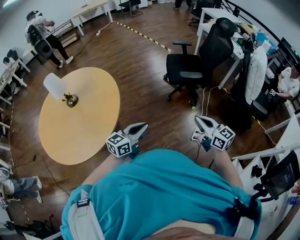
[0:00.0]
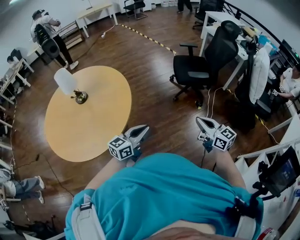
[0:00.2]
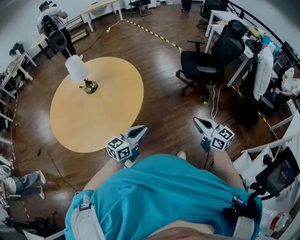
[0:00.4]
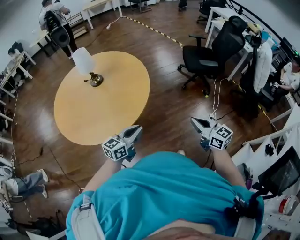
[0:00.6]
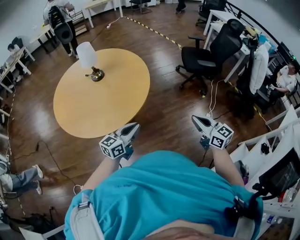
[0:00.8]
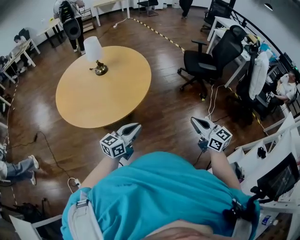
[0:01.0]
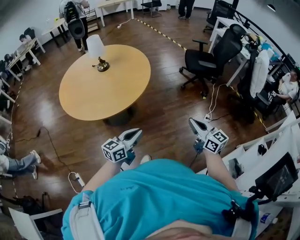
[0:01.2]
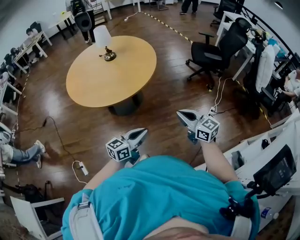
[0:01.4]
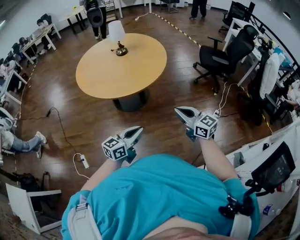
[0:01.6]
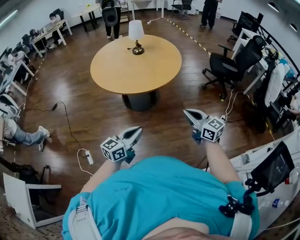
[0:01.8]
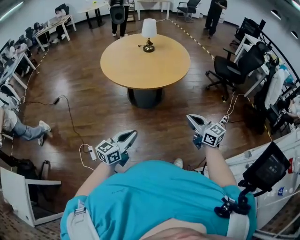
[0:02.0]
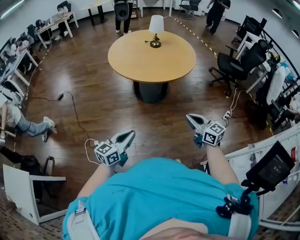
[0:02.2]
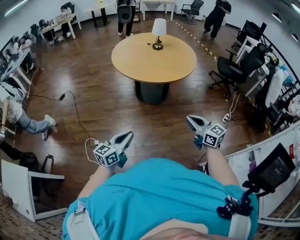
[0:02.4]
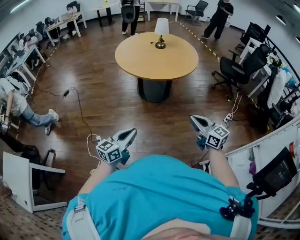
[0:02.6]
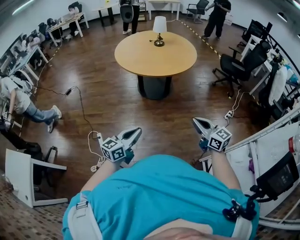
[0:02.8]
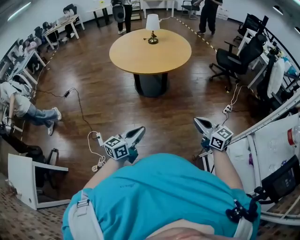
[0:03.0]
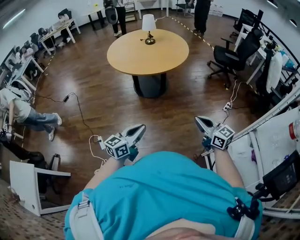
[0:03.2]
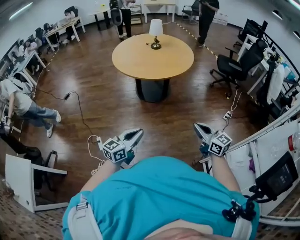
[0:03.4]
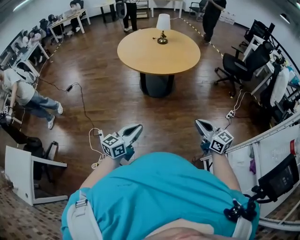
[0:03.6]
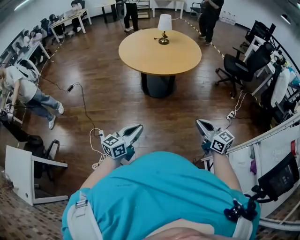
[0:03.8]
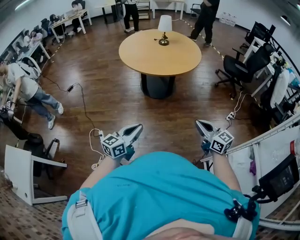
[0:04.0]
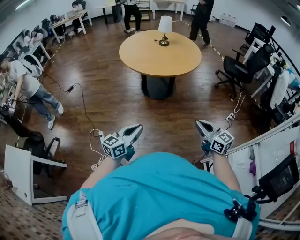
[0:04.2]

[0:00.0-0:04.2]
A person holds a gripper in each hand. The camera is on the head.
0:00.0 to 0:01.4: The two grippers travel together, backward and to the left, about 50 cm.
0:01.4 to 0:02.8: The grippers both shift backward and to the left by some 40 cm.

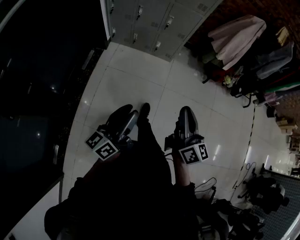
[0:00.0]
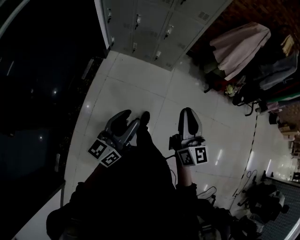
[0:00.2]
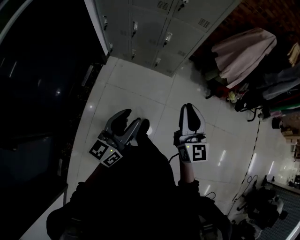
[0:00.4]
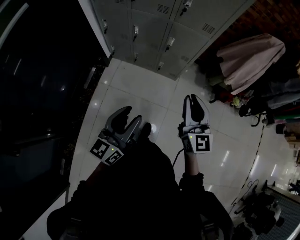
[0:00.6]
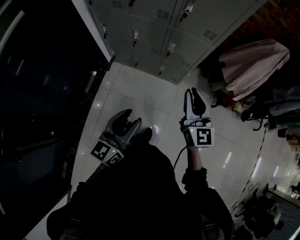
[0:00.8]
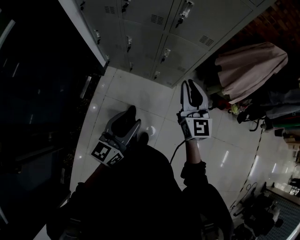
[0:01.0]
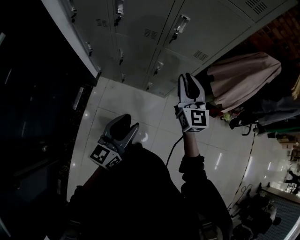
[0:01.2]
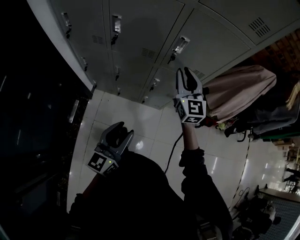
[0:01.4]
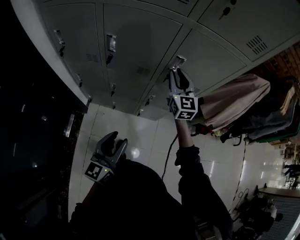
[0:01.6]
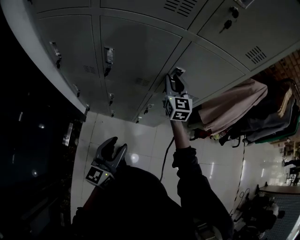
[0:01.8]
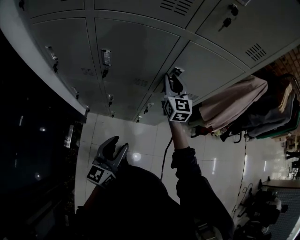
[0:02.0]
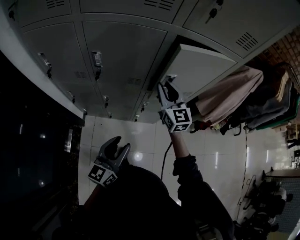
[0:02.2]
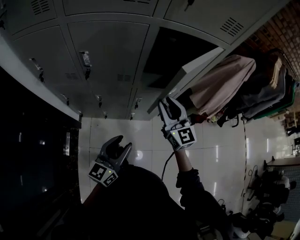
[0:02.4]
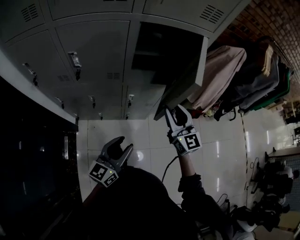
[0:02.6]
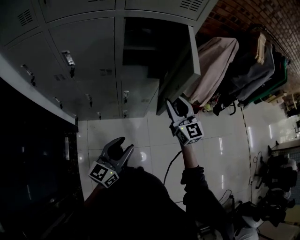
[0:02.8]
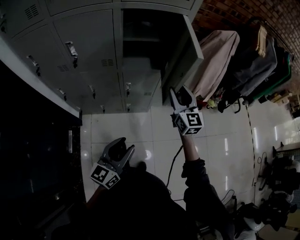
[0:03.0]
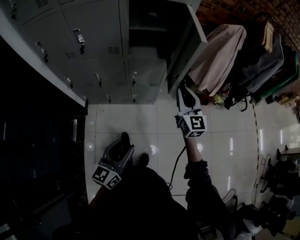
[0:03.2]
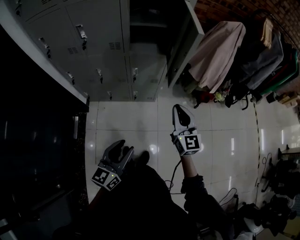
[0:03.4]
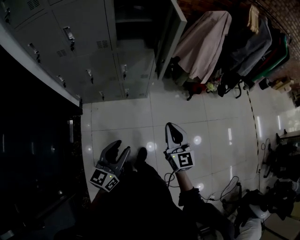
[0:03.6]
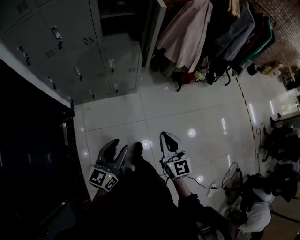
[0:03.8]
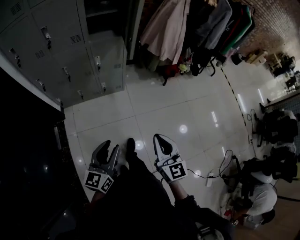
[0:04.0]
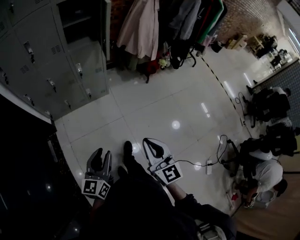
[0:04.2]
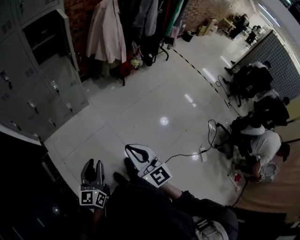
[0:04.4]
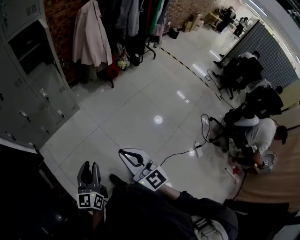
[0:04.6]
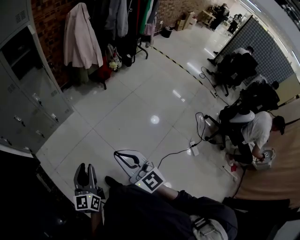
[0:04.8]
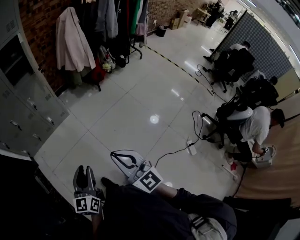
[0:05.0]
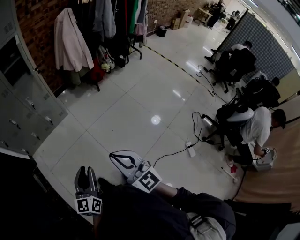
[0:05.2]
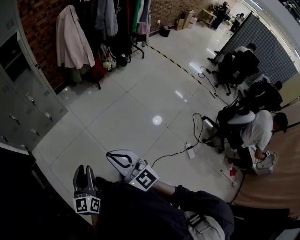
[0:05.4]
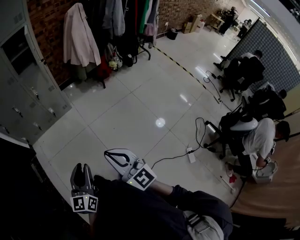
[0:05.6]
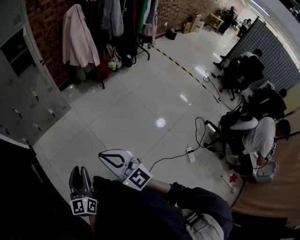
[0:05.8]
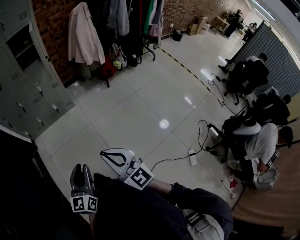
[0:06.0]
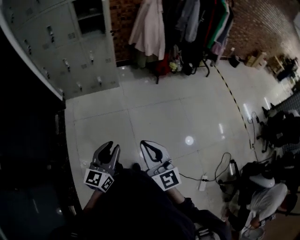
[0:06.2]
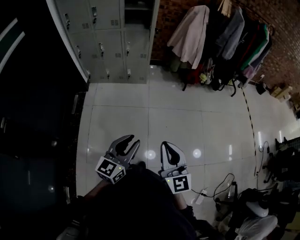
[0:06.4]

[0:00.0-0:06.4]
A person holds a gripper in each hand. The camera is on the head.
0:00.0 to 0:01.6: Both grippers are carried forward, approximately 70 cm. The left gripper turns by approximately 20 degrees; the right gripper rolls counterclockwise, seen from behind, by about 40 degrees.
0:01.6 to 0:03.2: The right gripper is displaced to the right and backward by roughly 35 cm, while the left gripper is displaced backward and to the right by about 20 cm.
0:03.2 to 0:04.8: The left gripper shifts about 35 cm backward and to the right. The right gripper moves backward, roughly 60 cm.
0:04.8 to 0:06.4: Both grippers travel together to the right and backward, about 15 cm.

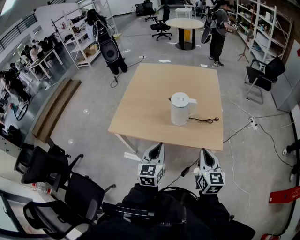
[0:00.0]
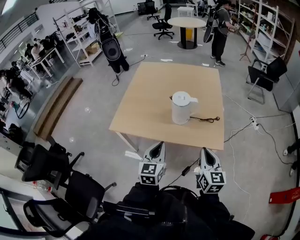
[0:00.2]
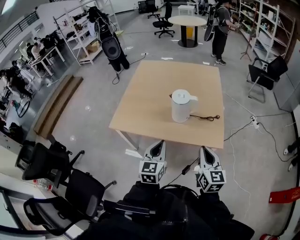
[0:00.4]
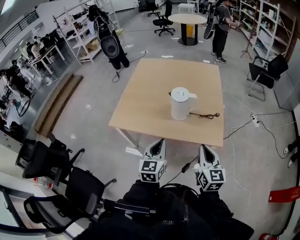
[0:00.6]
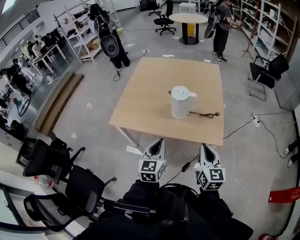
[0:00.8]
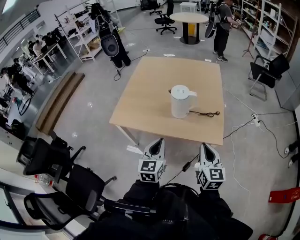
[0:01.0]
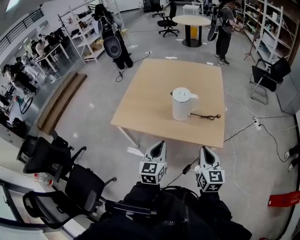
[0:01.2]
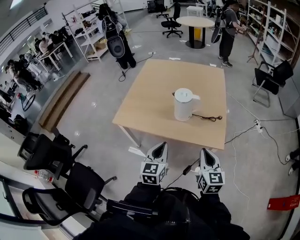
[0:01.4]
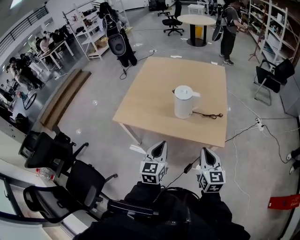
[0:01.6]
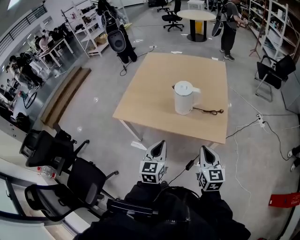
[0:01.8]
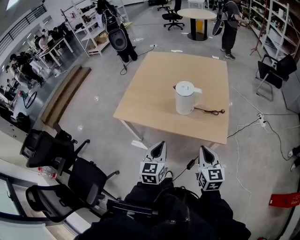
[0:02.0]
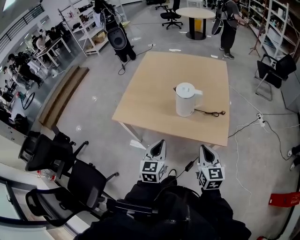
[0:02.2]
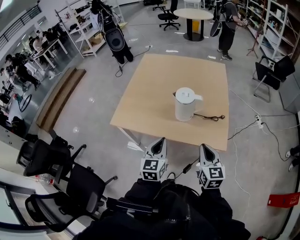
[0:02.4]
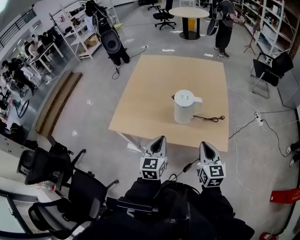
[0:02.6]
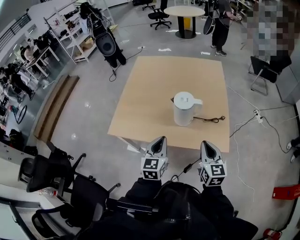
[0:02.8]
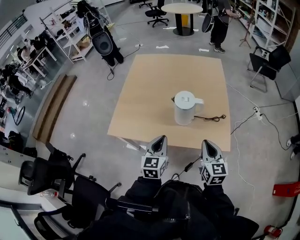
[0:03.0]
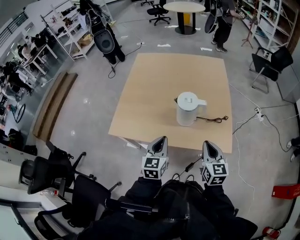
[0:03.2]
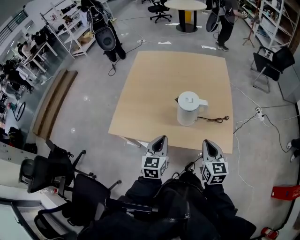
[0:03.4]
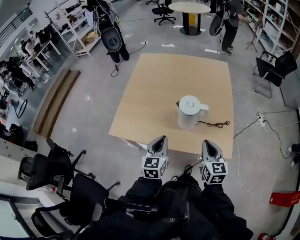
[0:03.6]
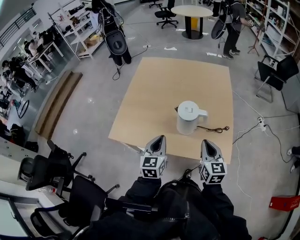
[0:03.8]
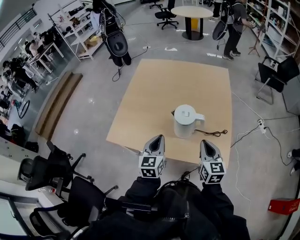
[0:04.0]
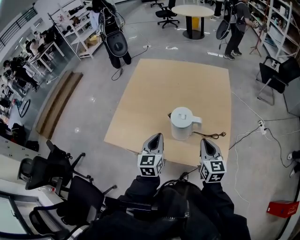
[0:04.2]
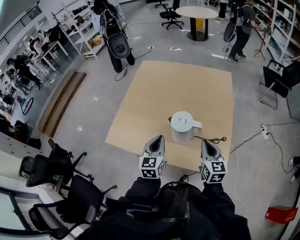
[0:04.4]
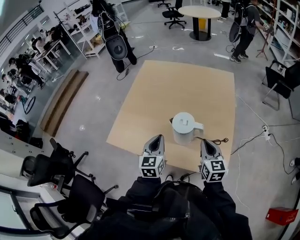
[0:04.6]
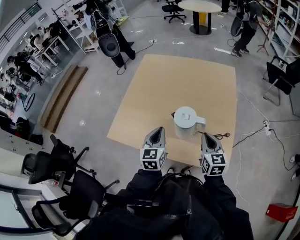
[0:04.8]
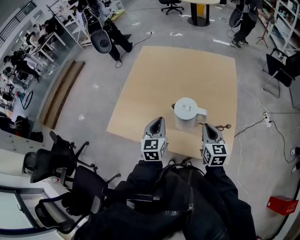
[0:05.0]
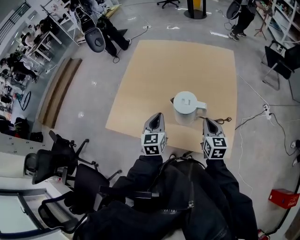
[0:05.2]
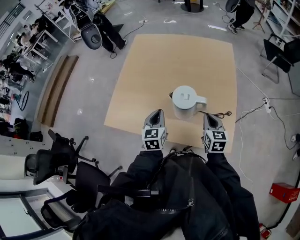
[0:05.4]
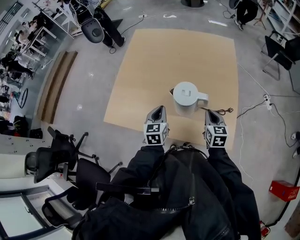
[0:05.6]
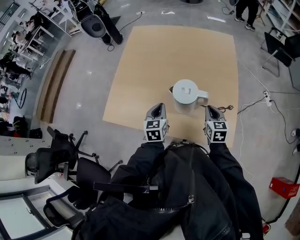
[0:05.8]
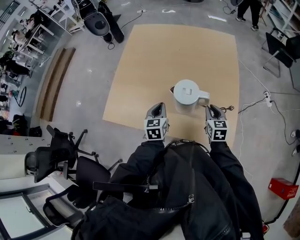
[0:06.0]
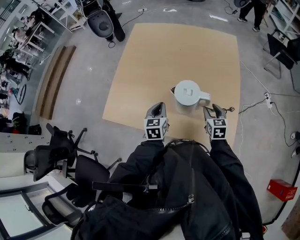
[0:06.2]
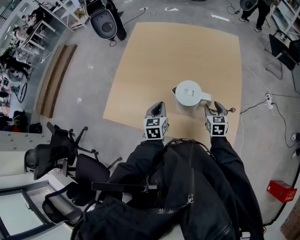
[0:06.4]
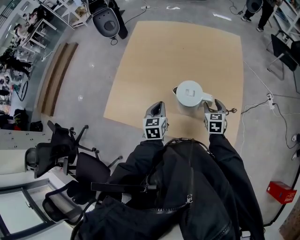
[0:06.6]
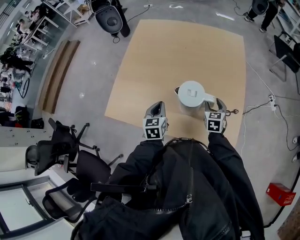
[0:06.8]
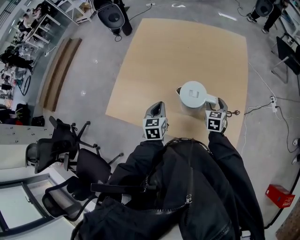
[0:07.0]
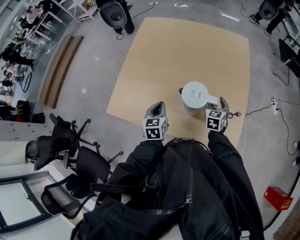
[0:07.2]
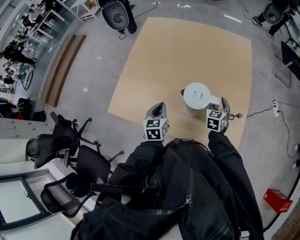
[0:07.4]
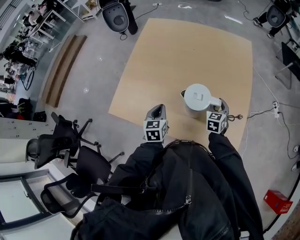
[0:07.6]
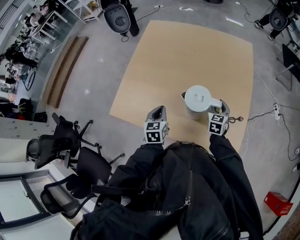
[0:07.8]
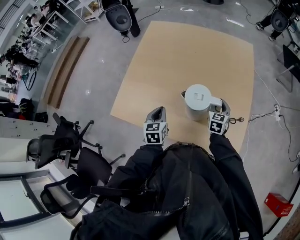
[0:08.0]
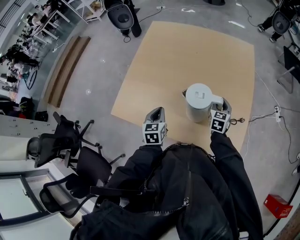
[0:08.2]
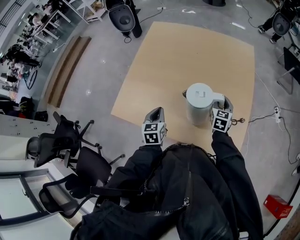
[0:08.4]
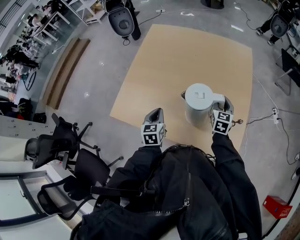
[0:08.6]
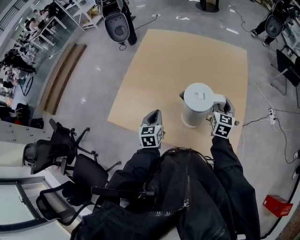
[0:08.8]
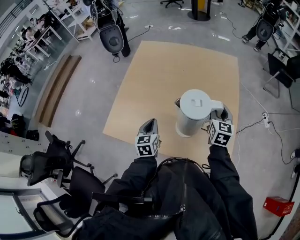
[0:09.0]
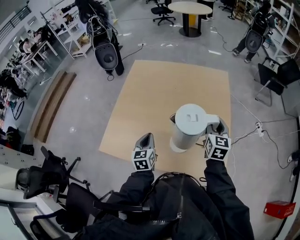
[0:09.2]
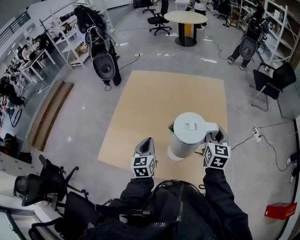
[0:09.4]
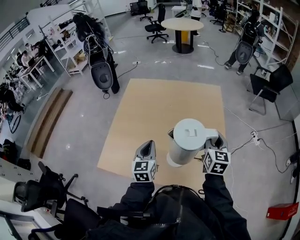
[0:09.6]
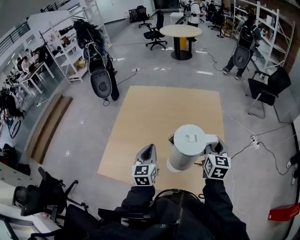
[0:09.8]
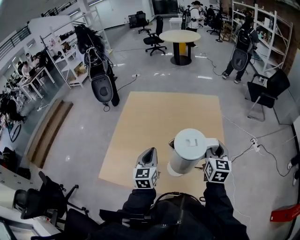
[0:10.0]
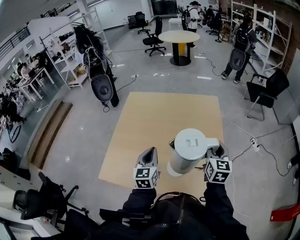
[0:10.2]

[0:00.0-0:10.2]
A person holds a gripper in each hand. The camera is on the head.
0:00.0 to 0:01.4: The grippers stay close to where they were, moving slightly.
0:01.4 to 0:03.0: The two grippers go approximately 15 cm forward.
0:03.0 to 0:04.4: The two grippers go some 15 cm forward.
0:04.4 to 0:05.8: Both grippers travel together downward and forward, some 15 cm.
0:05.8 to 0:07.2: The right gripper travels forward and downward by roughly 10 cm, and opens its fingers.
0:07.2 to 0:08.8: The right gripper is displaced upward by approximately 10 cm.
0:08.8 to 0:10.2: The left gripper heads upward and to the right, covering approximately 15 cm, and swivels about 20 degrees. Meanwhile the right gripper is displaced upward by approximately 15 cm.

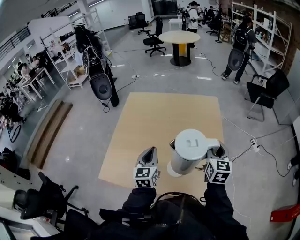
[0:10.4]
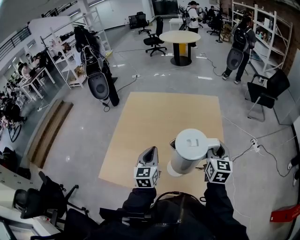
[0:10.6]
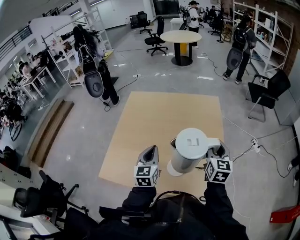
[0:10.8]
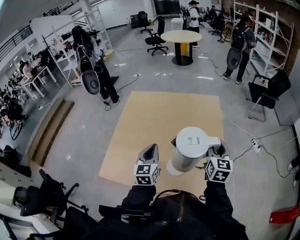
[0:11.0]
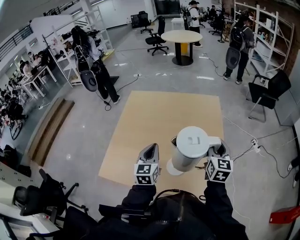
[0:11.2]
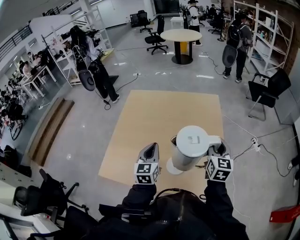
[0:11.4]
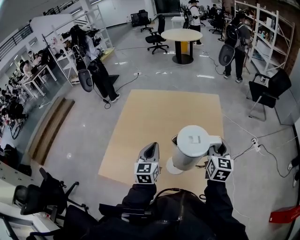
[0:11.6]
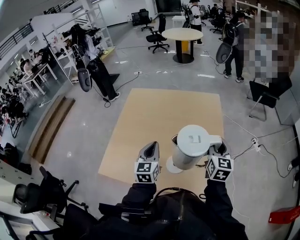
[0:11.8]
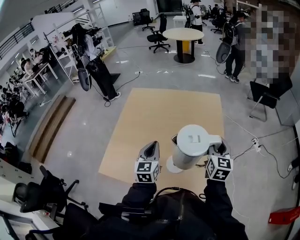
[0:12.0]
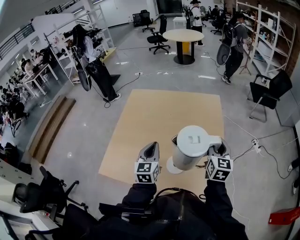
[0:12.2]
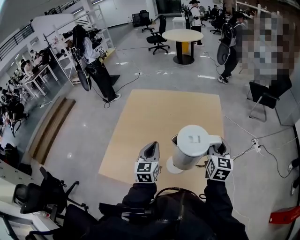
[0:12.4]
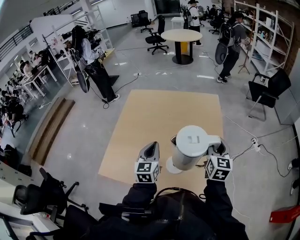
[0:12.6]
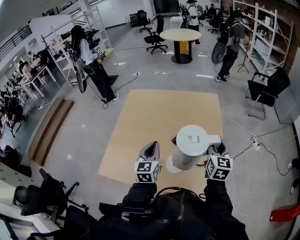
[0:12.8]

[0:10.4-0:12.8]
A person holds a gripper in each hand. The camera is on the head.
0:10.4 to 0:11.6: There are only small adjustments of the grippers.
0:11.6 to 0:12.8: The two grippers keep their place.
